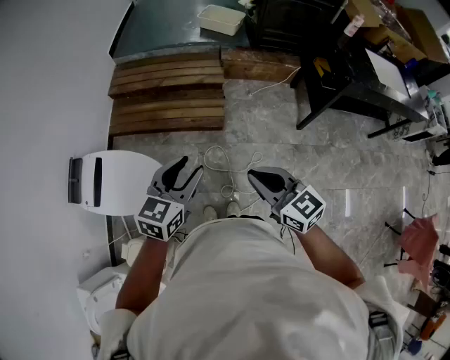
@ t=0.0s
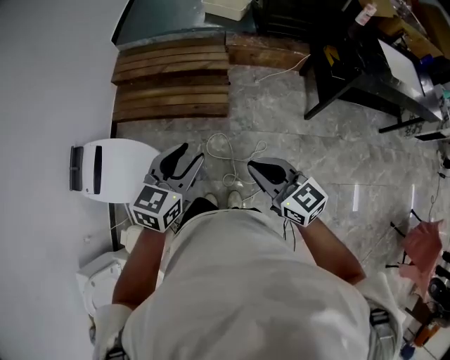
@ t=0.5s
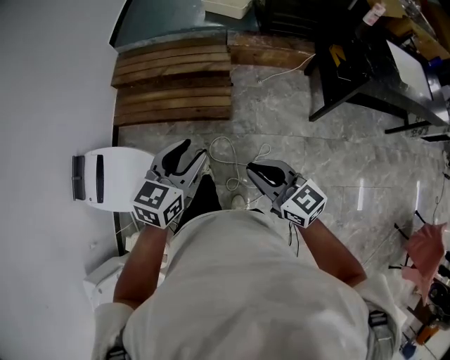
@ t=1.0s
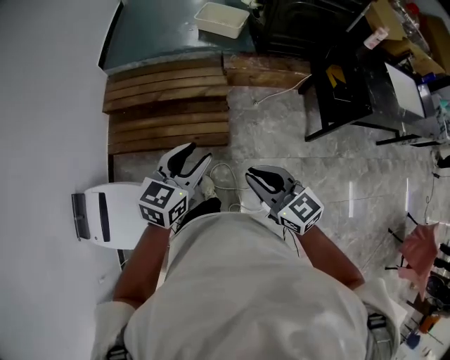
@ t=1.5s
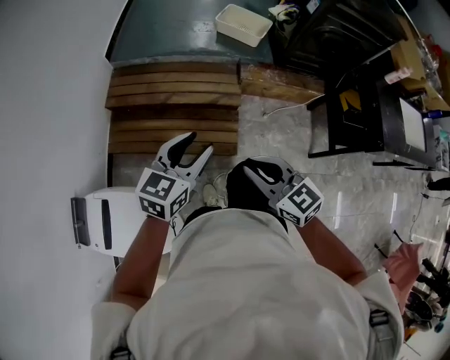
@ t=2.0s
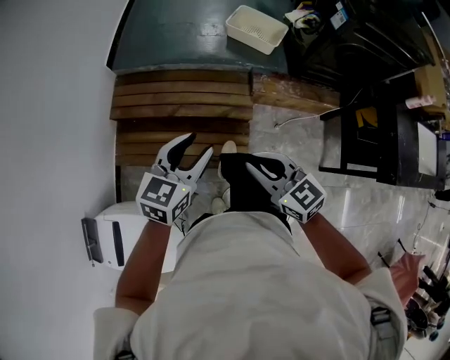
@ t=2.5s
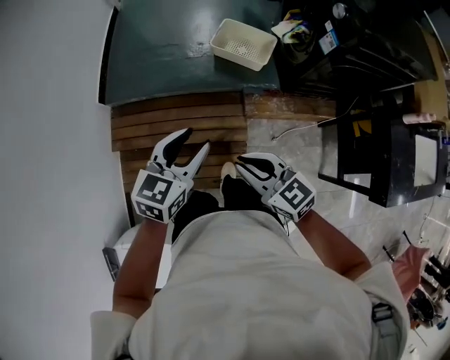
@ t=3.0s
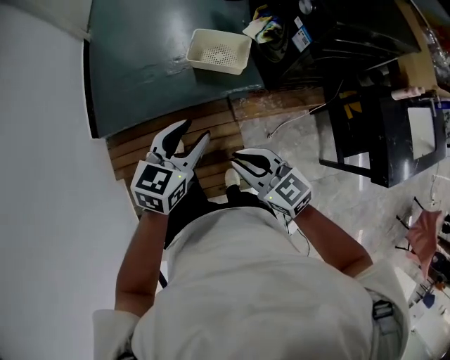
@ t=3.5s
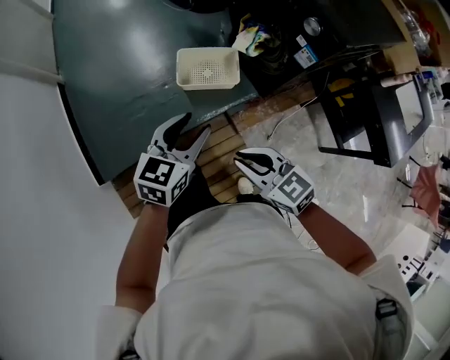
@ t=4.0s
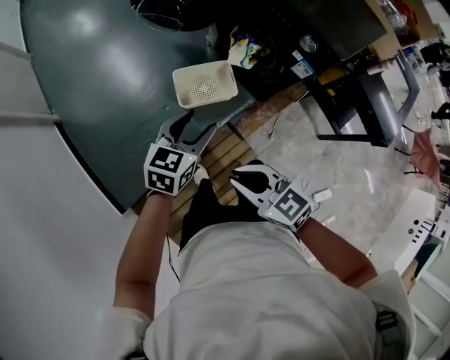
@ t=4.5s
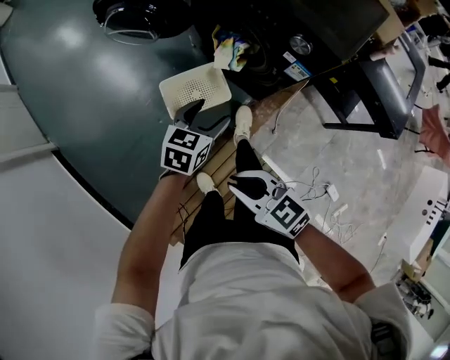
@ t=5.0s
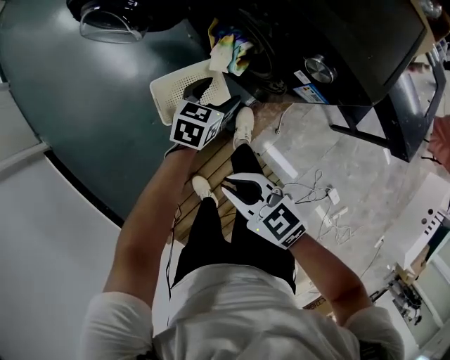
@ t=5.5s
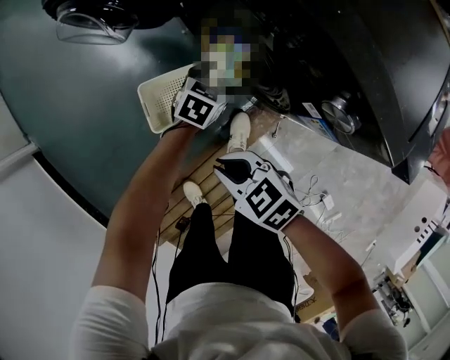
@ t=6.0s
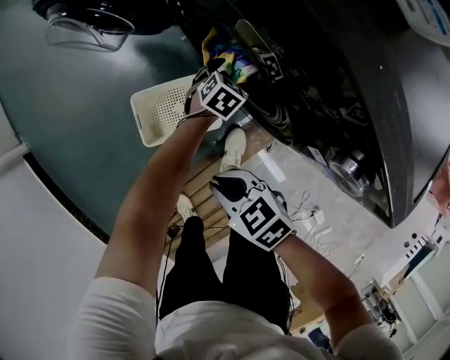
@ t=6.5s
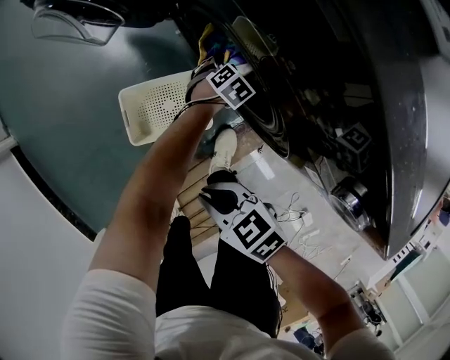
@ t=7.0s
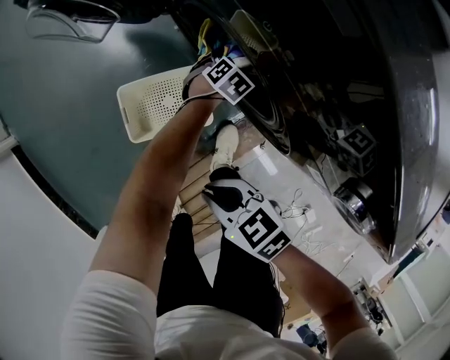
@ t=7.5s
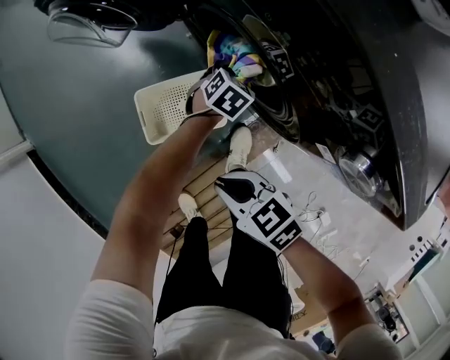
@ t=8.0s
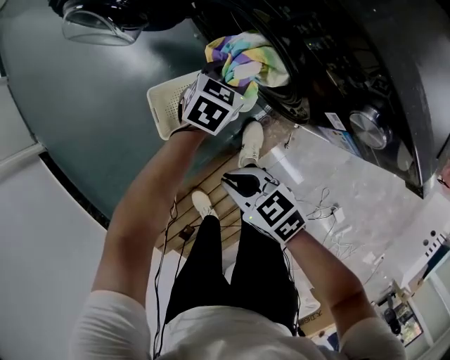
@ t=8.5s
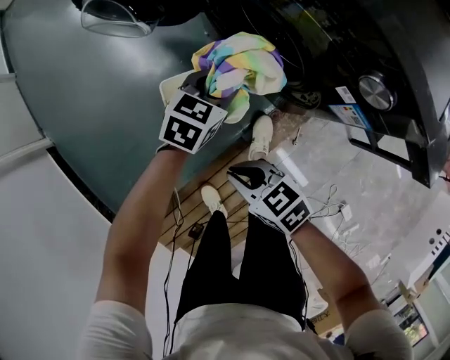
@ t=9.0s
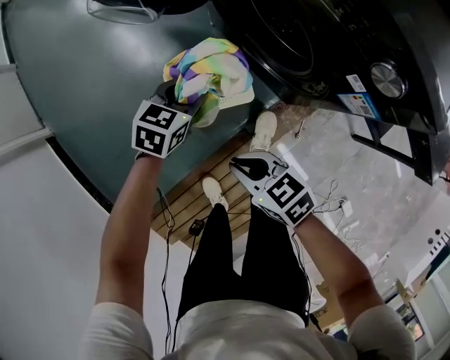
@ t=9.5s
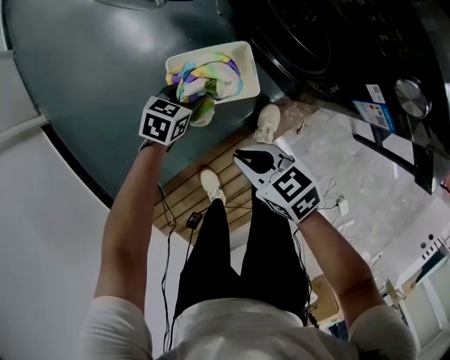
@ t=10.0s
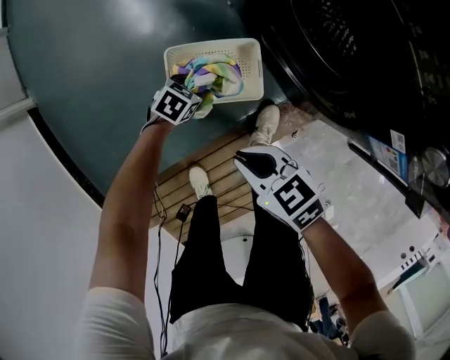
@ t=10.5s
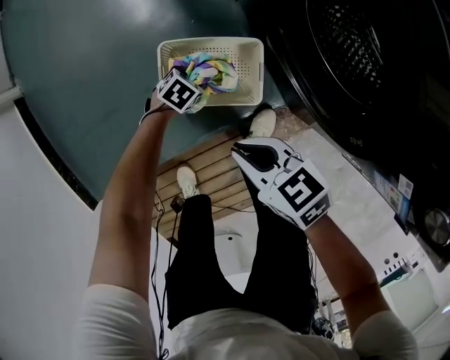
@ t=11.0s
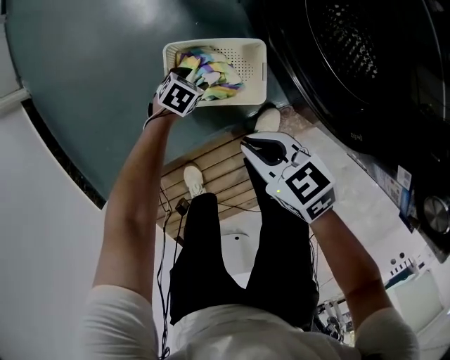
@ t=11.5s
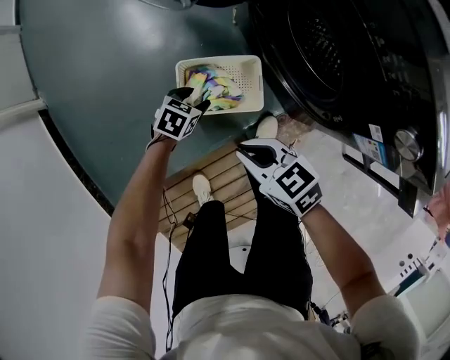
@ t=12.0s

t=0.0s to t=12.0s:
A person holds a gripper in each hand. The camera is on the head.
t=0.0s to t=2.0s: Both grippers travel together forward, about 40 cm.
t=2.0s to t=4.0s: Both grippers are carried approximately 60 cm. The right gripper rotates about 20 degrees. The left gripper swivels about 30 degrees.
t=4.0s to t=6.0s: The right gripper is displaced forward and downward by some 35 cm, and swivels about 20 degrees; the left gripper travels forward, downward and to the right by roughly 60 cm, rotates about 30 degrees, and opens up.
t=6.0s to t=8.0s: The left gripper is displaced downward by approximately 10 cm, and closes up, while the right gripper moves some 5 cm.
t=8.0s to t=10.0s: The left gripper heads to the left and backward, covering about 30 cm. The right gripper travels to the left and backward by roughly 10 cm.
t=10.0s to t=12.0s: The right gripper moves about 5 cm downward and comes back, while the left gripper moves roughly 20 cm downward and comes back.

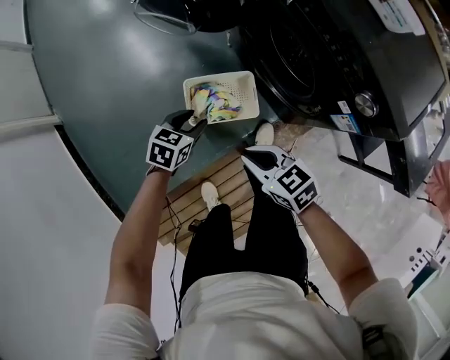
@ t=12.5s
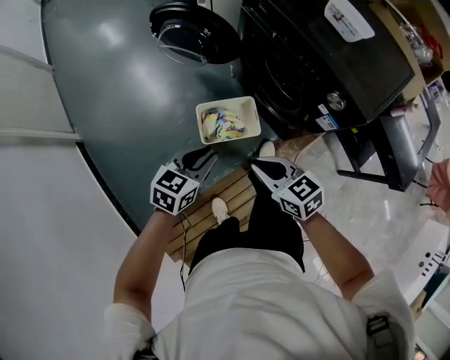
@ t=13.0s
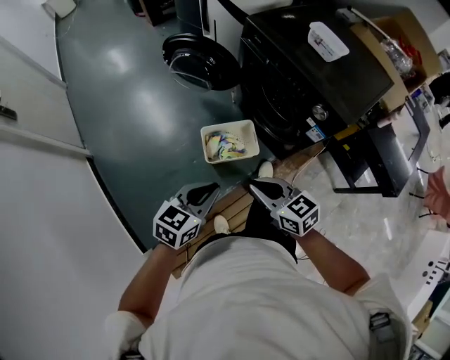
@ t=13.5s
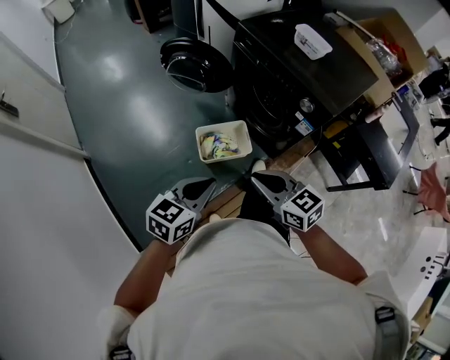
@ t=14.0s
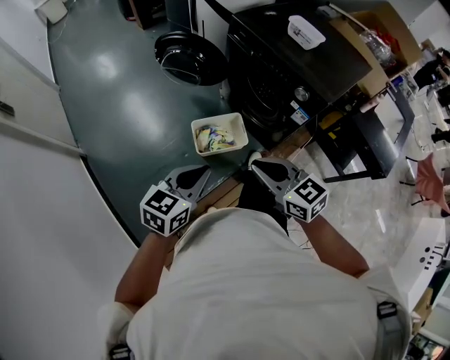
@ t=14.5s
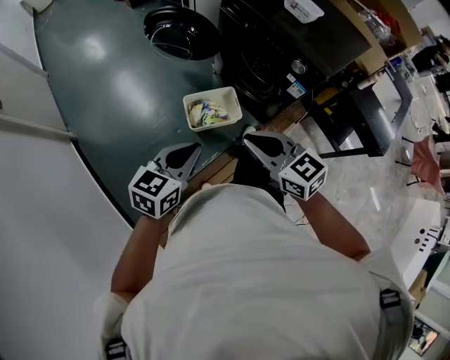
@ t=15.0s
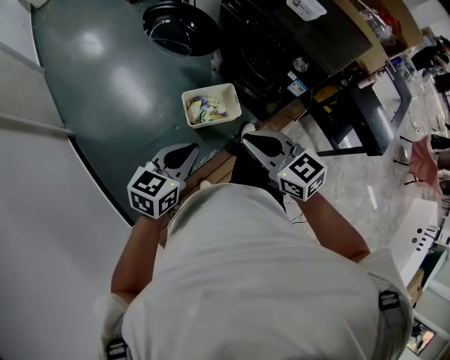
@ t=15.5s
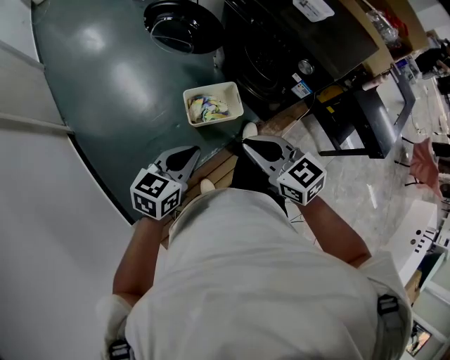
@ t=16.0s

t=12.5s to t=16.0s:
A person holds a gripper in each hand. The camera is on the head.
t=12.5s to t=14.5s: The grippers both shift upward and backward by about 40 cm. The left gripper changes its angle by some 20 degrees, and closes; the right gripper changes its angle by about 20 degrees.
t=14.5s to t=16.0s: The left gripper shifts by roughly 5 cm.

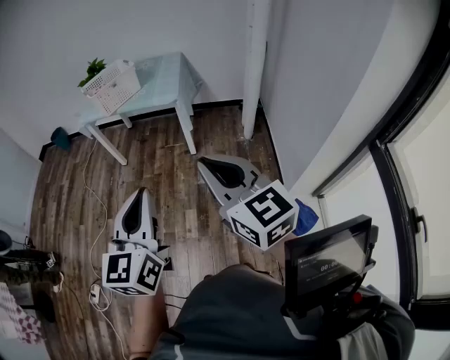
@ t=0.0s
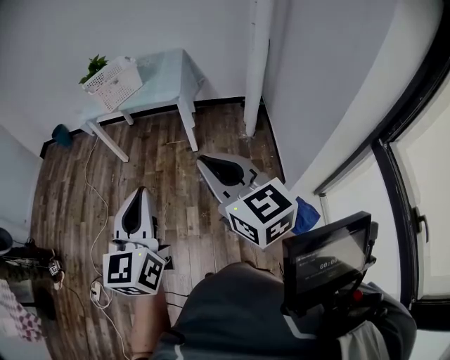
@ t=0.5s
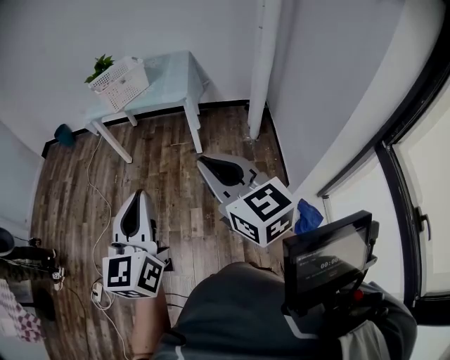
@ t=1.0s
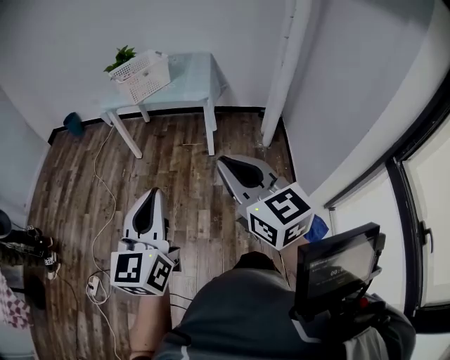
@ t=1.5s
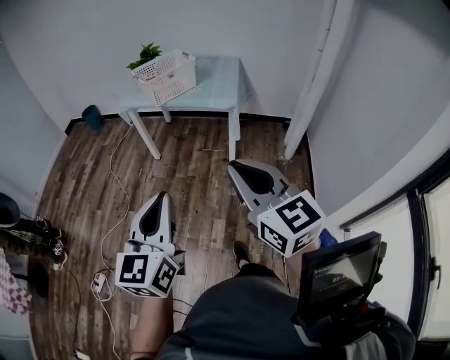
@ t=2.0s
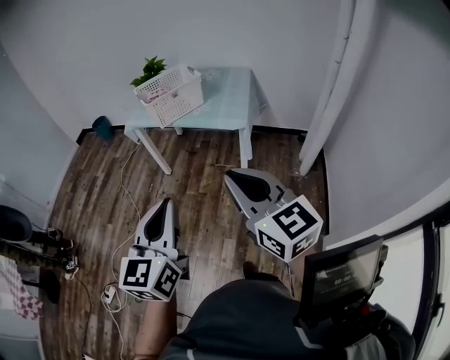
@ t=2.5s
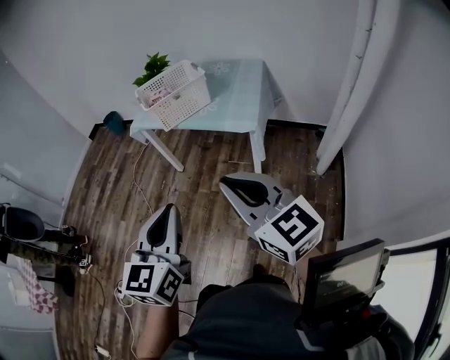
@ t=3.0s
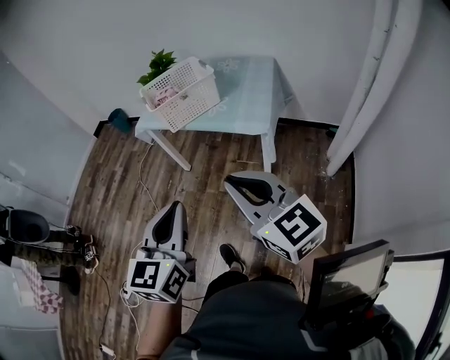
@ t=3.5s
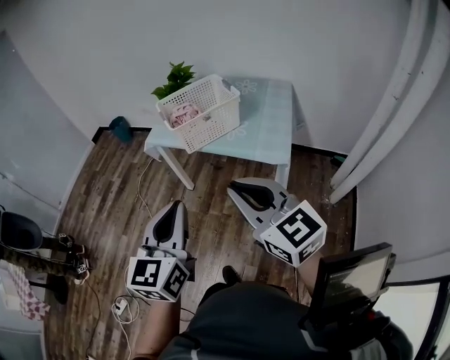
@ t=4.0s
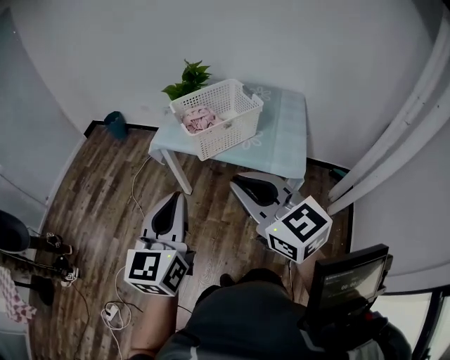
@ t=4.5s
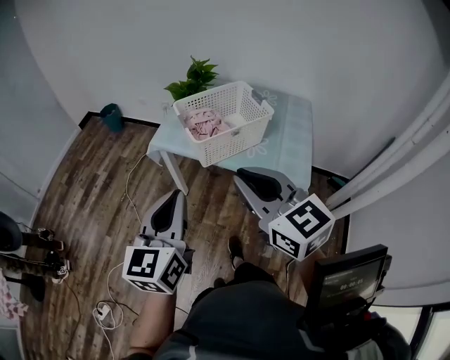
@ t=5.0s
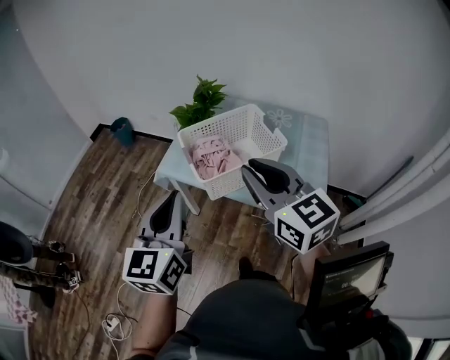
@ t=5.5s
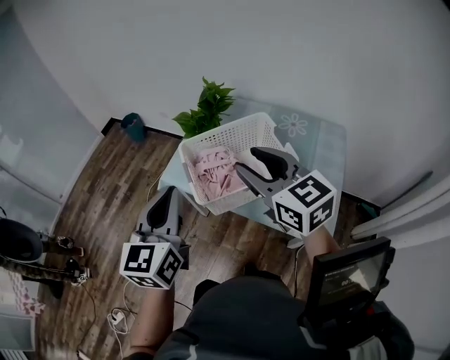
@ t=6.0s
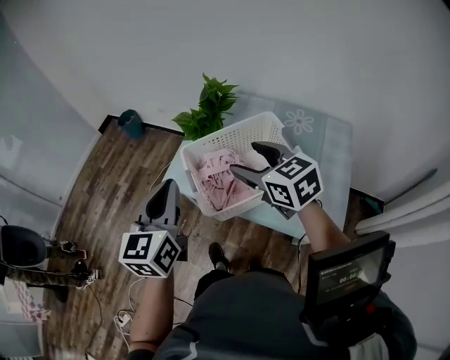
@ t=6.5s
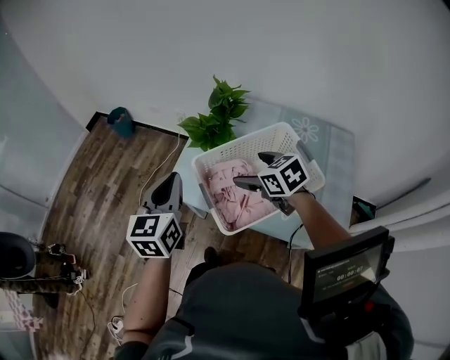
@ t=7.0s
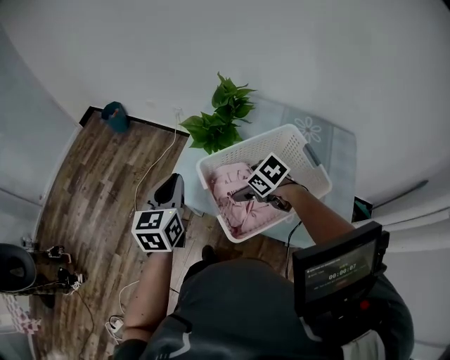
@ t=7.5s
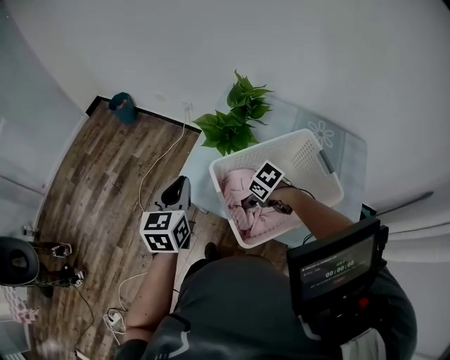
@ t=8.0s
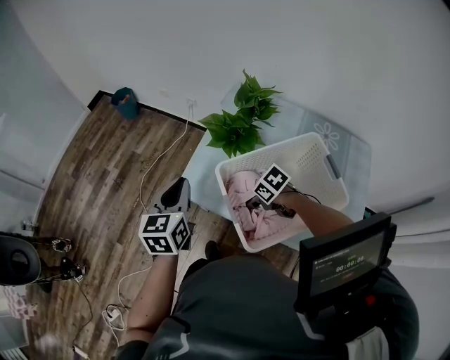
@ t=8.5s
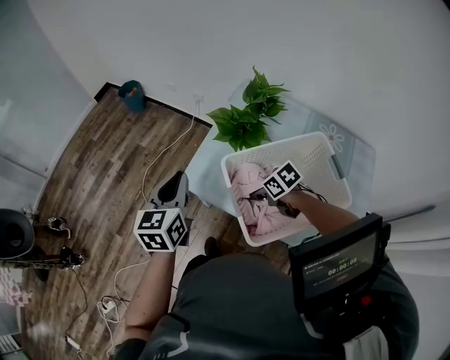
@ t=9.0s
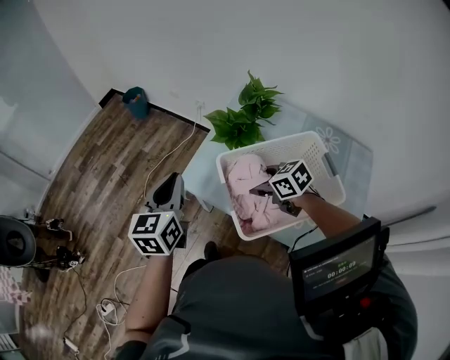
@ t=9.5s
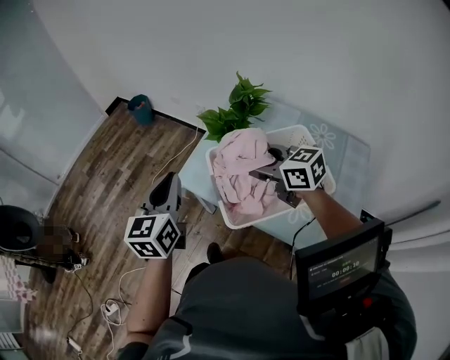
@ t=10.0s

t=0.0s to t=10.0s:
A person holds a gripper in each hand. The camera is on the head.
t=0.0s to t=2.0s: The grippers both shift to the left and forward by some 15 cm.
t=2.0s to t=4.0s: The grippers both shift forward by some 35 cm.
t=4.0s to t=6.0s: The grippers both shift forward by some 35 cm.
t=6.0s to t=8.0s: The left gripper moves forward and downward, approximately 30 cm. Meanwhile the right gripper heads downward and forward, covering roughly 40 cm, points its fingers about 60 degrees further downward, and opens.
t=8.0s to t=10.0s: The right gripper travels upward by roughly 25 cm, angles its fingers upward, by approximately 50 degrees, and closes its fingers. Meanwhile the left gripper goes some 10 cm upward and backward.

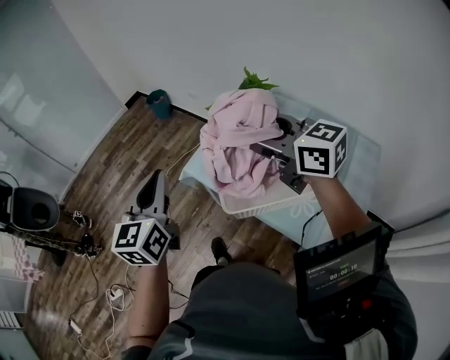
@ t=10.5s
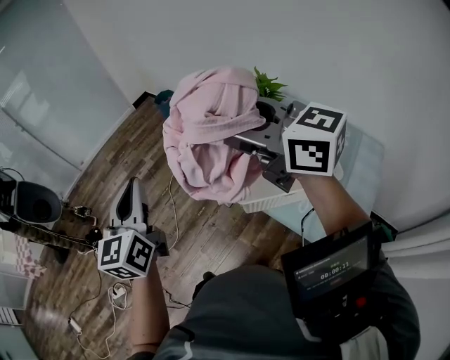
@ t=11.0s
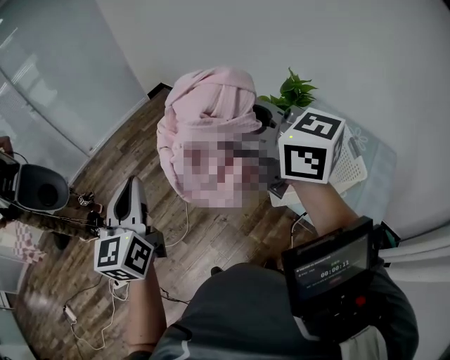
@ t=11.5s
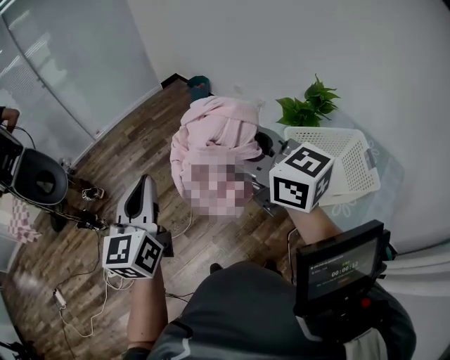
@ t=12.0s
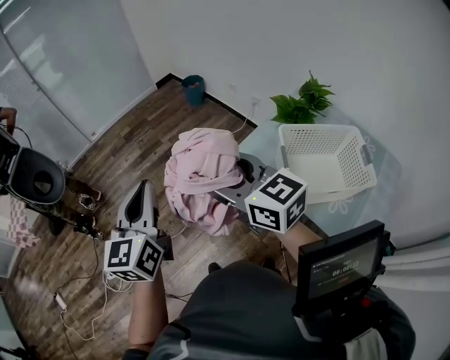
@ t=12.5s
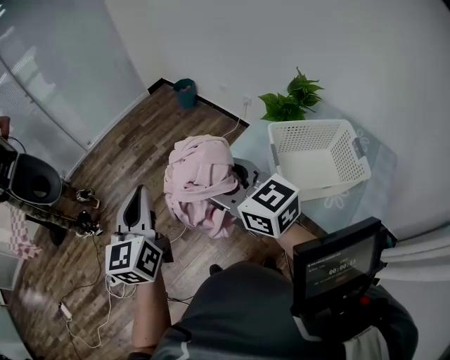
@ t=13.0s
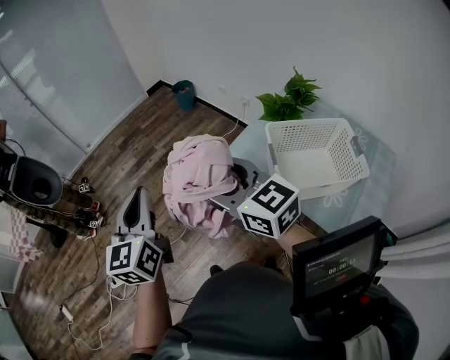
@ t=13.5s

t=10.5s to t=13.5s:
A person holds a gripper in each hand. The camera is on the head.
t=10.5s to t=12.0s: The grippers both shift to the left by roughly 30 cm.
t=12.0s to t=13.5s: The right gripper moves downward, about 5 cm.
